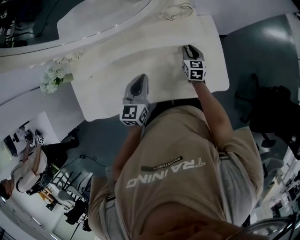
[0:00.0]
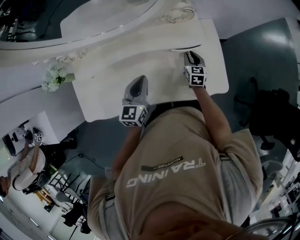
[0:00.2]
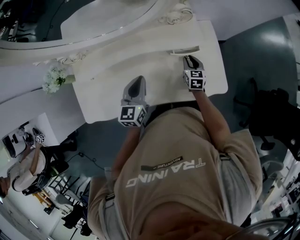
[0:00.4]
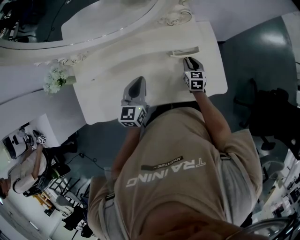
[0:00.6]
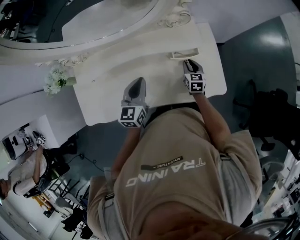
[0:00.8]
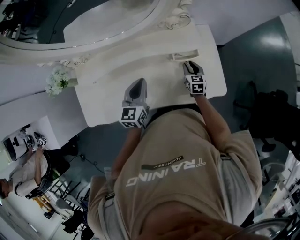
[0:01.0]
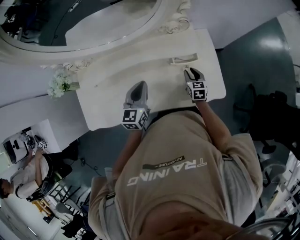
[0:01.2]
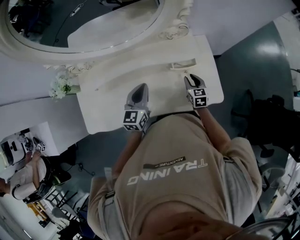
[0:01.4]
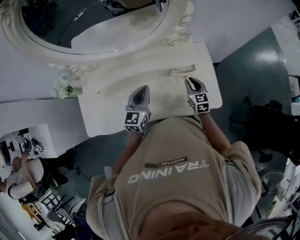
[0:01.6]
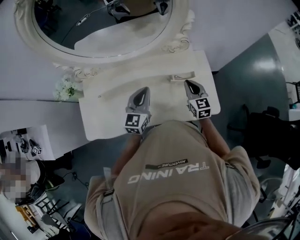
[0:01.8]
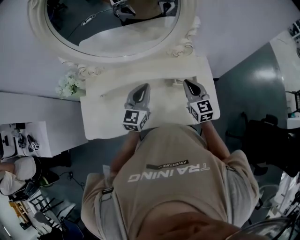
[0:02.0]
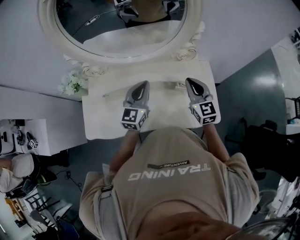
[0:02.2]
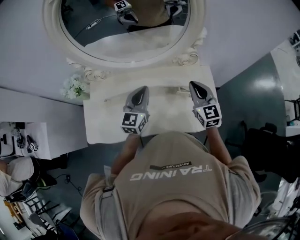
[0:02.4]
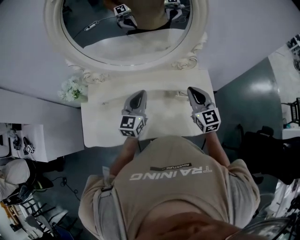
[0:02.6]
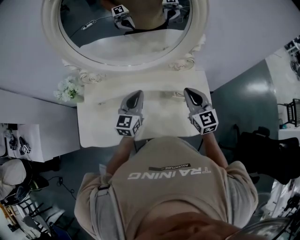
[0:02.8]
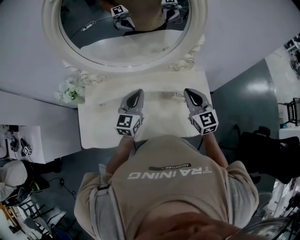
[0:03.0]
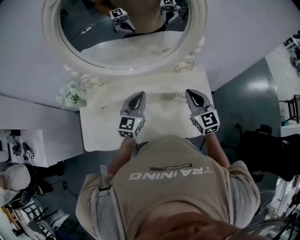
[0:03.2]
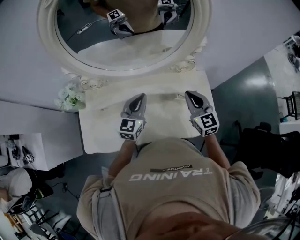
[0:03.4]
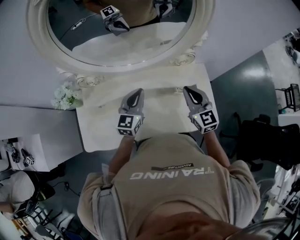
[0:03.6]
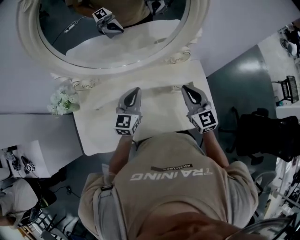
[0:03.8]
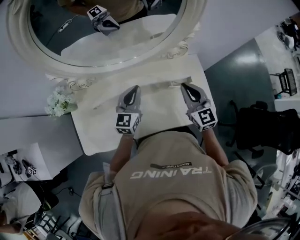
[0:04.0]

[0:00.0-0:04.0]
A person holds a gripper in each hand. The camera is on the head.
0:00.0 to 0:01.4: The right gripper moves backward, about 10 cm.
0:01.4 to 0:02.6: The right gripper shifts about 25 cm upward, turns by roughly 30 degrees, and closes, while the left gripper moves upward and to the left, approximately 10 cm.
0:02.6 to 0:04.0: The grippers move only a little.

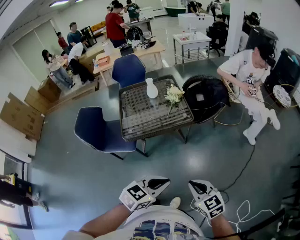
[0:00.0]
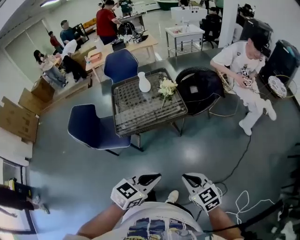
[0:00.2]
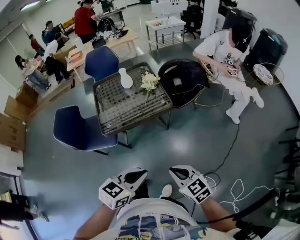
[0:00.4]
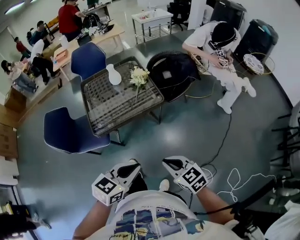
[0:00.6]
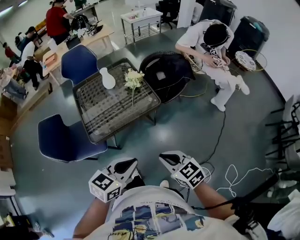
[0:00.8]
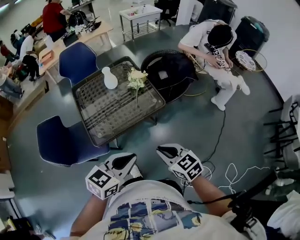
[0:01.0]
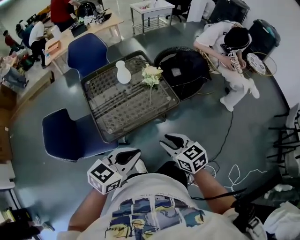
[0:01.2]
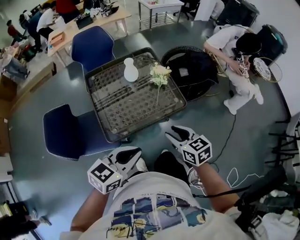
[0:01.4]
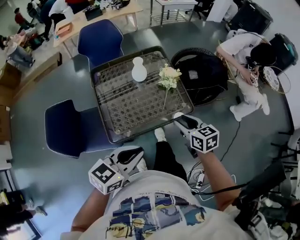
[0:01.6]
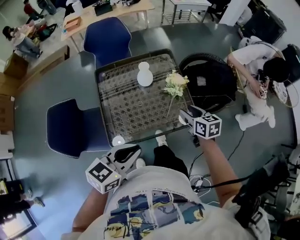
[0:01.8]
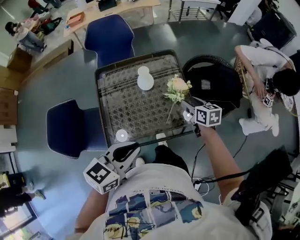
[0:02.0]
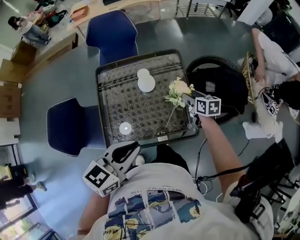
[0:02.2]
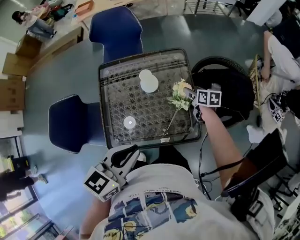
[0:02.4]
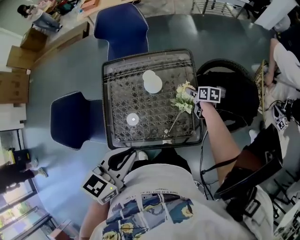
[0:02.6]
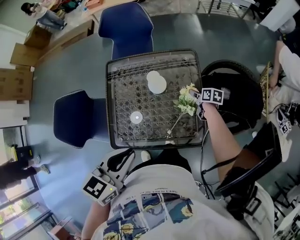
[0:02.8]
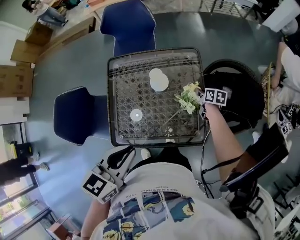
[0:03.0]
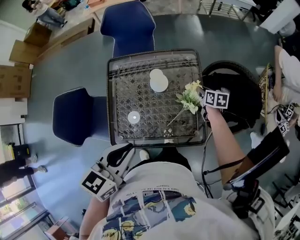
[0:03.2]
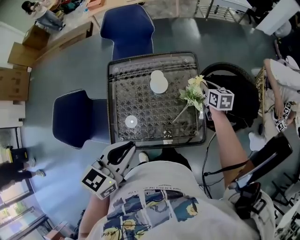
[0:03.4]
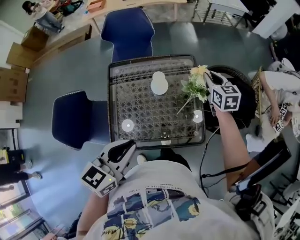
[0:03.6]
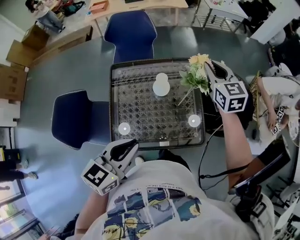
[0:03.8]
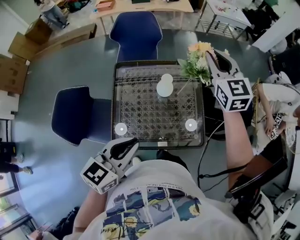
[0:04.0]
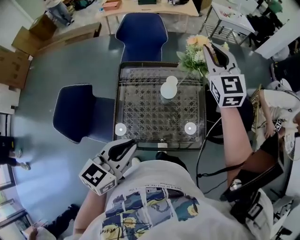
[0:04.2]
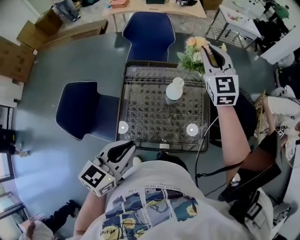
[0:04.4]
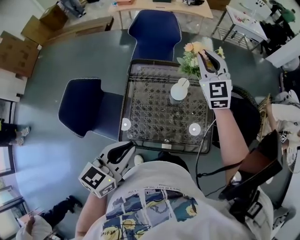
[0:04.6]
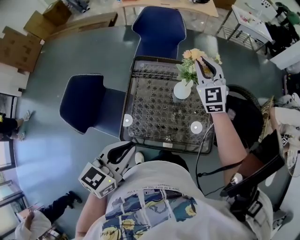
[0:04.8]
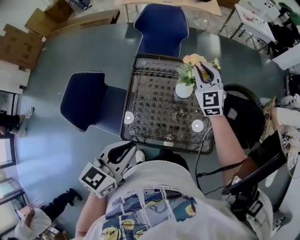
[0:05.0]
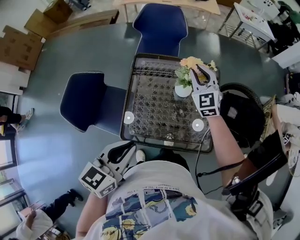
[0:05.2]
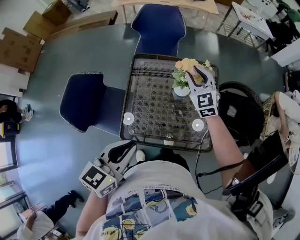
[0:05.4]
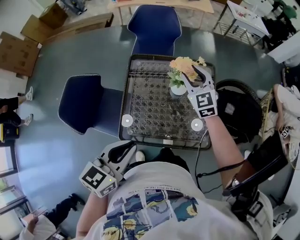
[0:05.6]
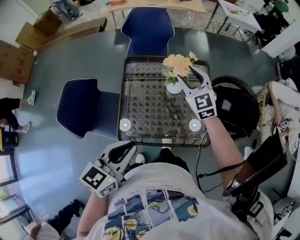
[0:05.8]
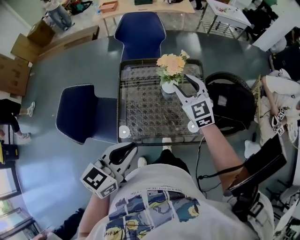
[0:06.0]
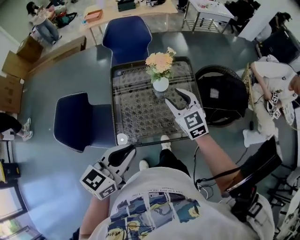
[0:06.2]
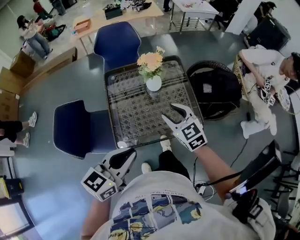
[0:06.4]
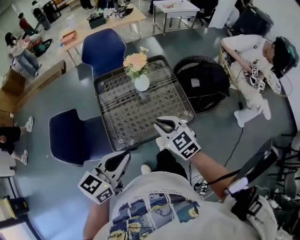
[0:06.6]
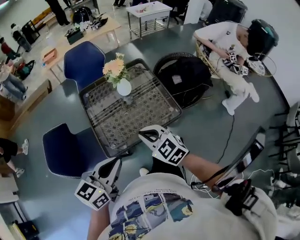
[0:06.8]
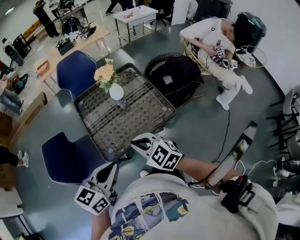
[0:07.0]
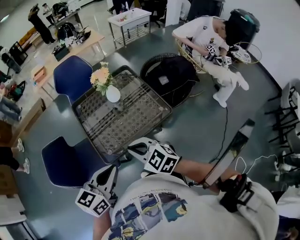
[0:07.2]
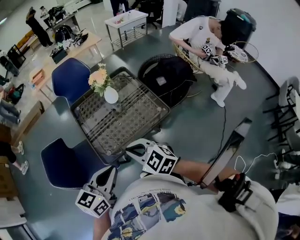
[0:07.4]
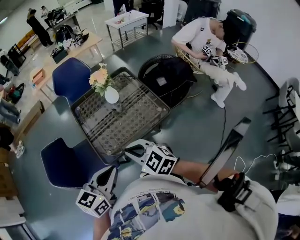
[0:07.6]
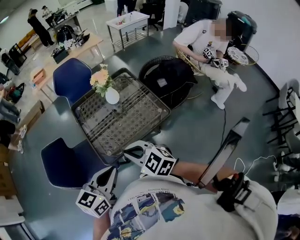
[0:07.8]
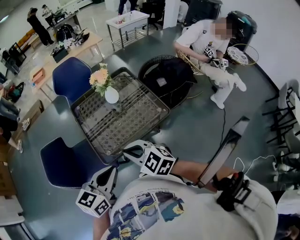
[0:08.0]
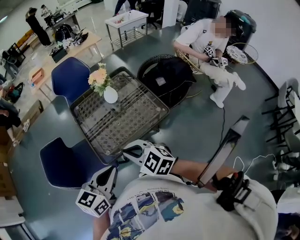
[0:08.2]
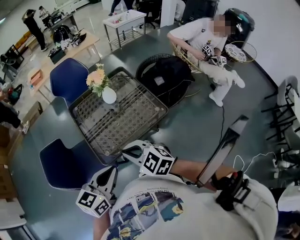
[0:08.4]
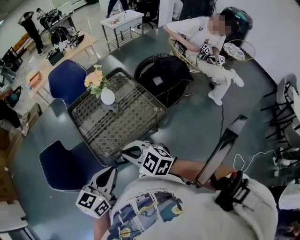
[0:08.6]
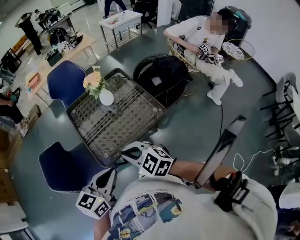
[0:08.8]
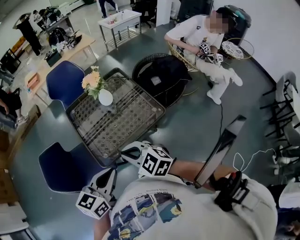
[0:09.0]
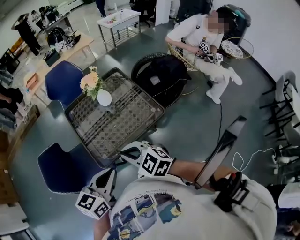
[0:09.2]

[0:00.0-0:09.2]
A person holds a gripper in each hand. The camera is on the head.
0:00.0 to 0:01.6: Both grippers travel together forward and to the left, some 40 cm. The right gripper opens.
0:01.6 to 0:03.0: The left gripper travels forward by approximately 20 cm, and swivels approximately 30 degrees. Meanwhile the right gripper moves forward and downward, roughly 40 cm, changes its angle by roughly 30 degrees, and opens and closes again.
0:03.0 to 0:04.6: The right gripper heads upward and to the left, covering approximately 50 cm, and rolls counterclockwise, seen from behind, by about 70 degrees; the left gripper goes about 10 cm to the left.
0:04.6 to 0:06.2: The left gripper goes roughly 5 cm backward. The right gripper travels backward and downward by roughly 25 cm, turns by roughly 20 degrees, and opens up.
0:06.2 to 0:07.6: The left gripper goes some 10 cm backward. The right gripper travels backward by about 30 cm, and closes up.
0:07.6 to 0:09.2: The grippers make only small movements.

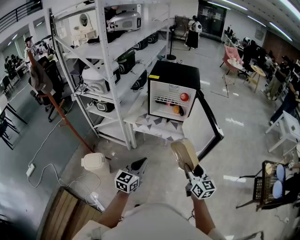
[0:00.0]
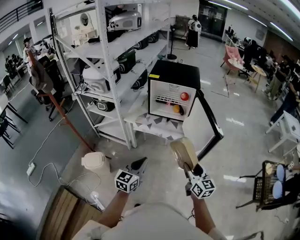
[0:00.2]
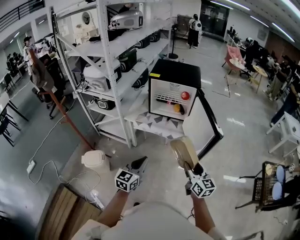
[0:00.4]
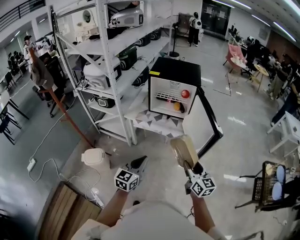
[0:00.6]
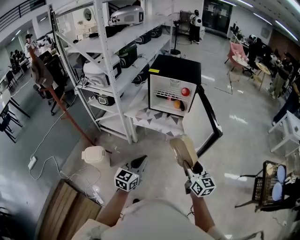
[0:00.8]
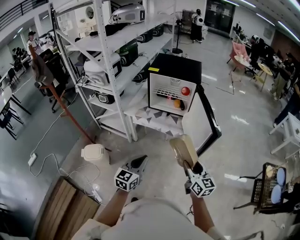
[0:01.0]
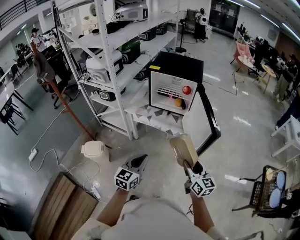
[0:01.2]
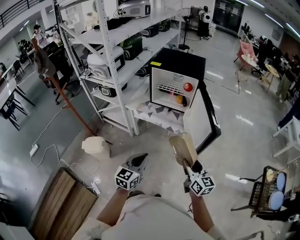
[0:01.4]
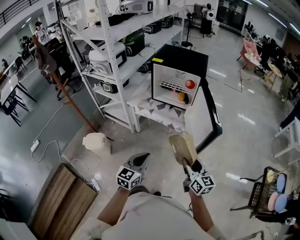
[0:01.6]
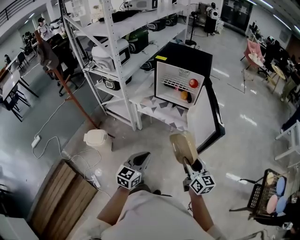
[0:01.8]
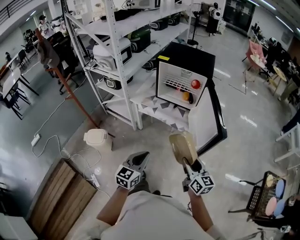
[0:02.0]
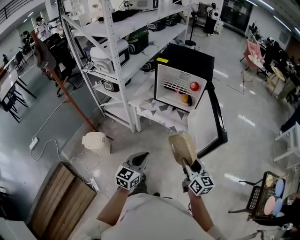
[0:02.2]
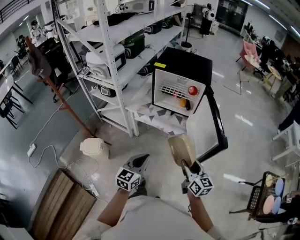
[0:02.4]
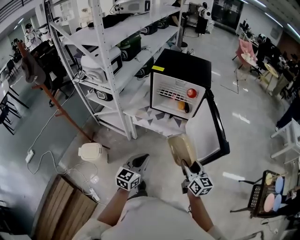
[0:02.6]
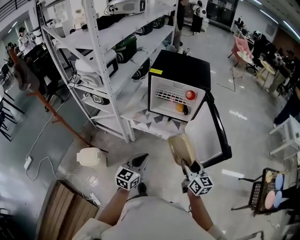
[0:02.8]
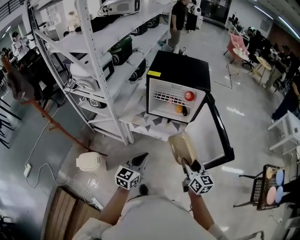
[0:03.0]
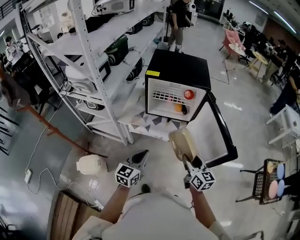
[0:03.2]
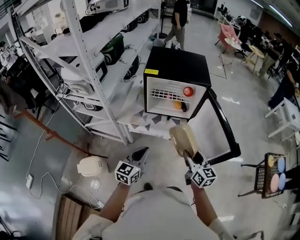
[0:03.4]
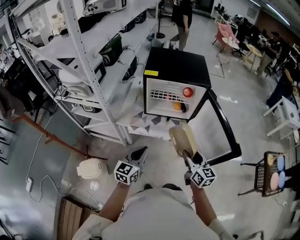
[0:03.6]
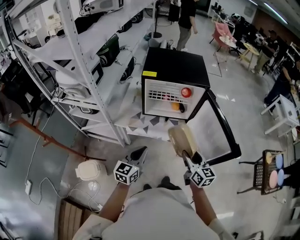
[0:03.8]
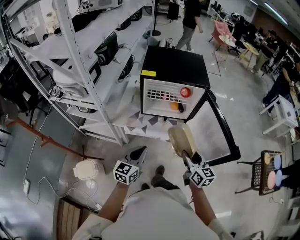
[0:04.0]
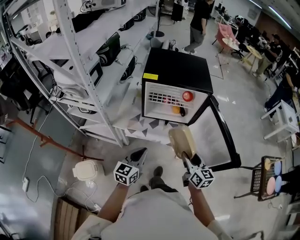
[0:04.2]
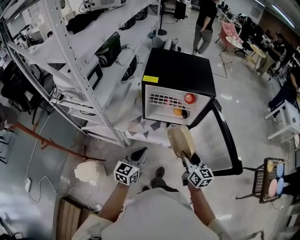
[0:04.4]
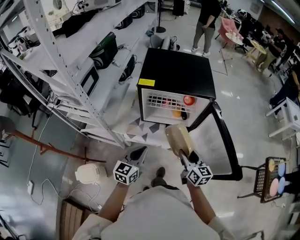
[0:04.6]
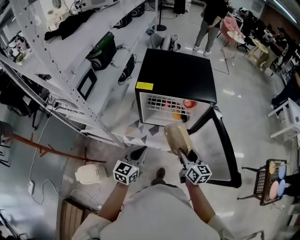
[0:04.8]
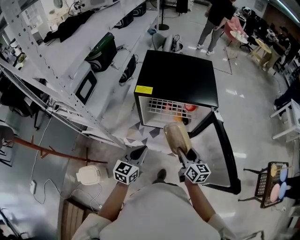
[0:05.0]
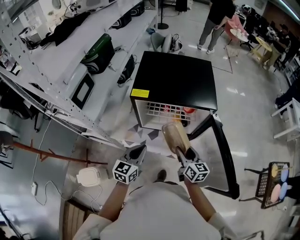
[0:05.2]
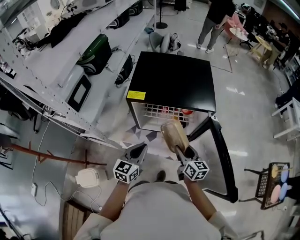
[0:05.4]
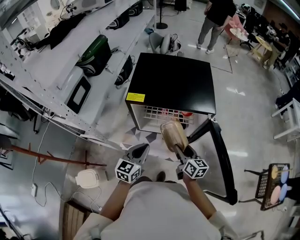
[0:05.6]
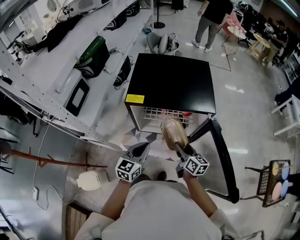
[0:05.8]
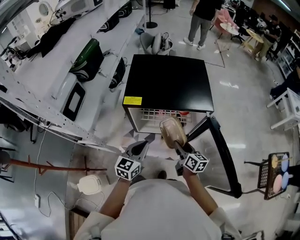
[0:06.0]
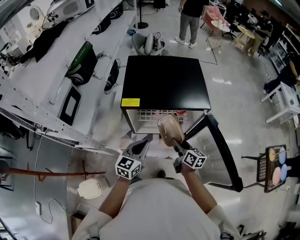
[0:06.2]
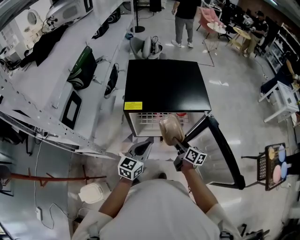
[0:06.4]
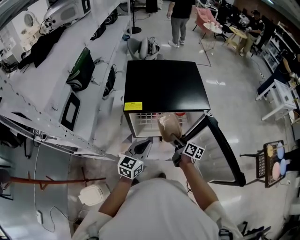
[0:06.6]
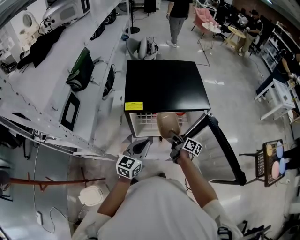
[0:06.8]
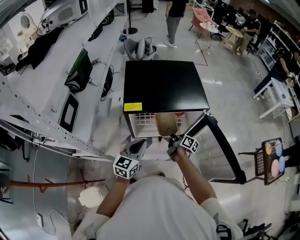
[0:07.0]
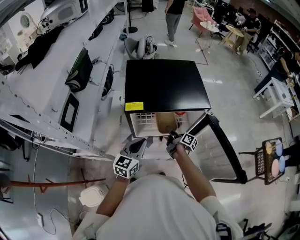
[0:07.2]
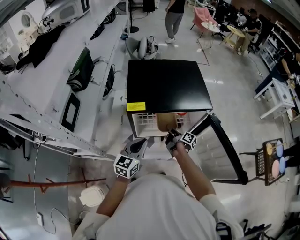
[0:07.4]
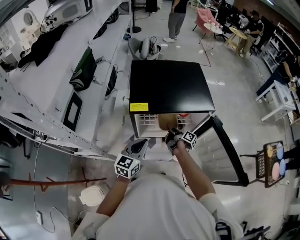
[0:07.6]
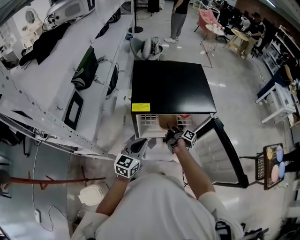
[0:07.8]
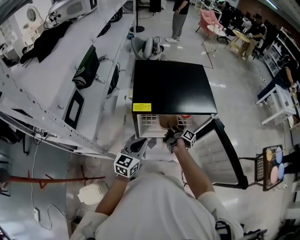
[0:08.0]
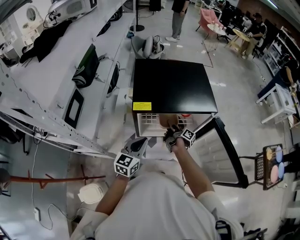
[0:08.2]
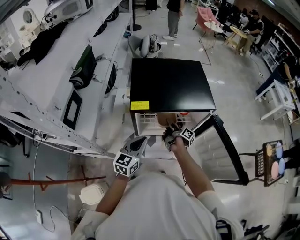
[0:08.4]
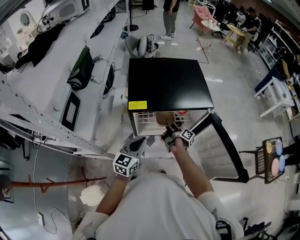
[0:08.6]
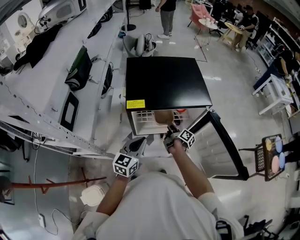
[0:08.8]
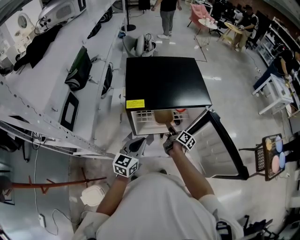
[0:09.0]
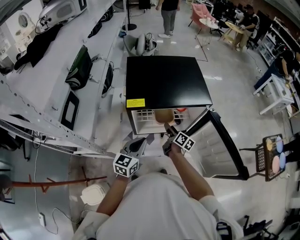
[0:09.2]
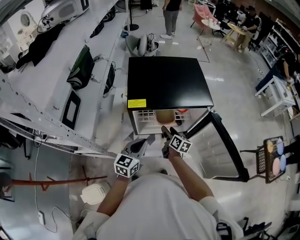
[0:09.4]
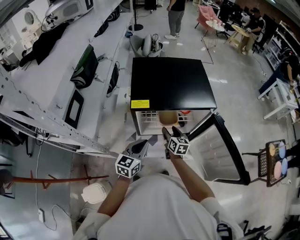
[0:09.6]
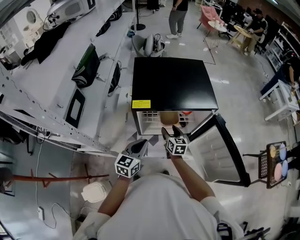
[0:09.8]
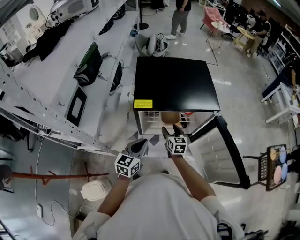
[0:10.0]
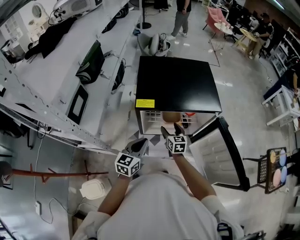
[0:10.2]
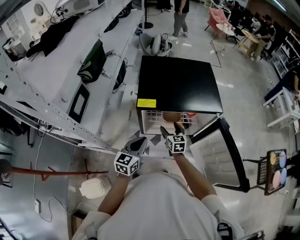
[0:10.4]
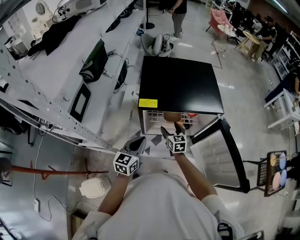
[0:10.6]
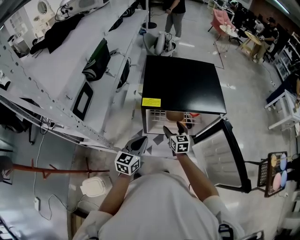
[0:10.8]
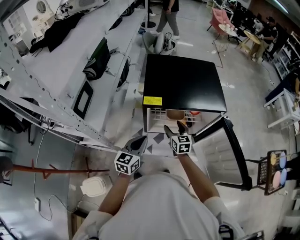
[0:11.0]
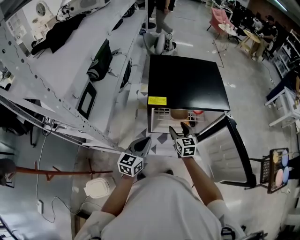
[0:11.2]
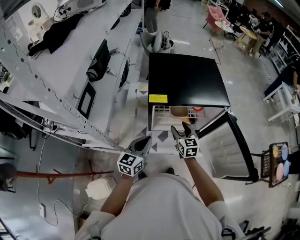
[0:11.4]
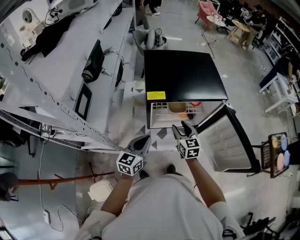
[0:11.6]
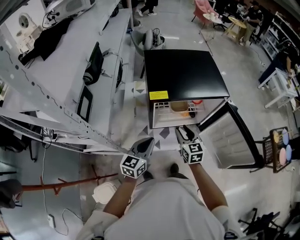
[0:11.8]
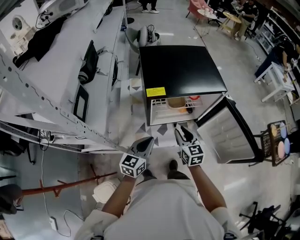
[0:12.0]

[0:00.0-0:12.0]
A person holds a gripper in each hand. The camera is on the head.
0:00.0 to 0:01.6: The left gripper moves to the right, some 10 cm, while the right gripper travels to the right by roughly 5 cm.
0:01.6 to 0:03.0: The two grippers go approximately 20 cm forward and to the left.
0:03.0 to 0:04.4: The grippers both shift forward by roughly 10 cm.
0:04.4 to 0:06.0: Both grippers move forward, roughly 20 cm.
0:06.0 to 0:07.6: The left gripper ends up roughly 5 cm from where it was, while the right gripper travels forward, downward and to the left by about 15 cm, and rotates around the line of its fingers by some 50 degrees, clockwise from behind.
0:07.6 to 0:09.0: The grippers move only a little.
0:09.0 to 0:10.4: The right gripper goes approximately 5 cm to the left, and rolls counterclockwise, seen from behind, by about 60 degrees.
0:10.4 to 0:12.0: The left gripper changes place by approximately 5 cm. Meanwhile the right gripper moves backward and upward, roughly 15 cm, and closes up.
